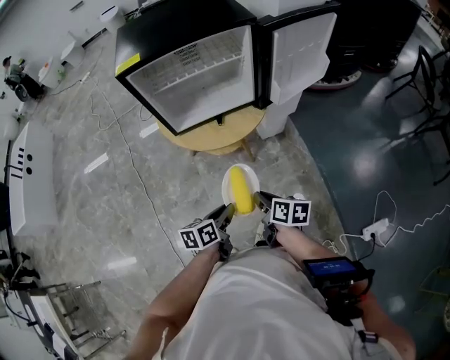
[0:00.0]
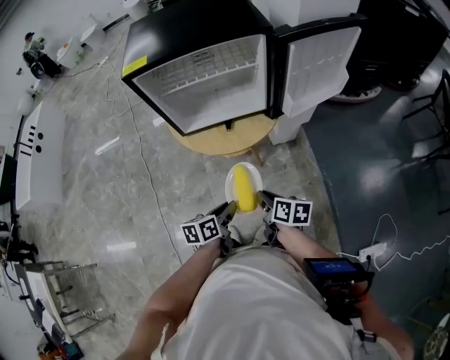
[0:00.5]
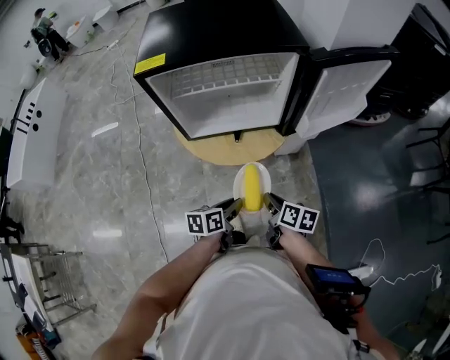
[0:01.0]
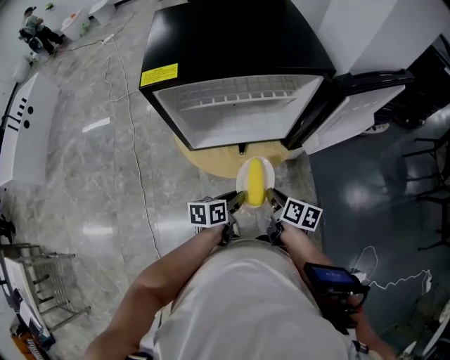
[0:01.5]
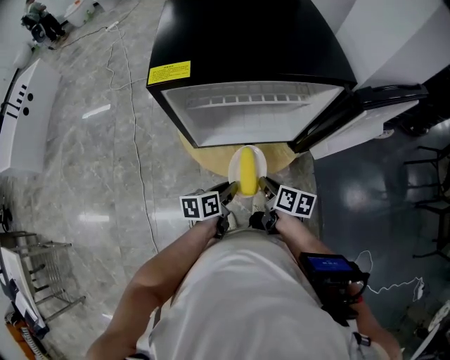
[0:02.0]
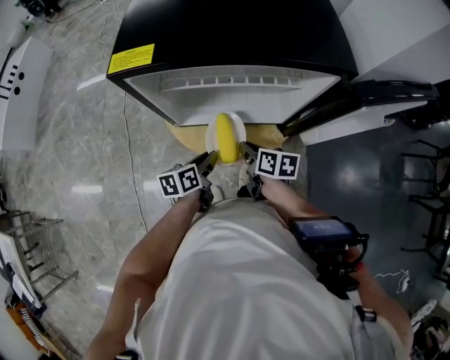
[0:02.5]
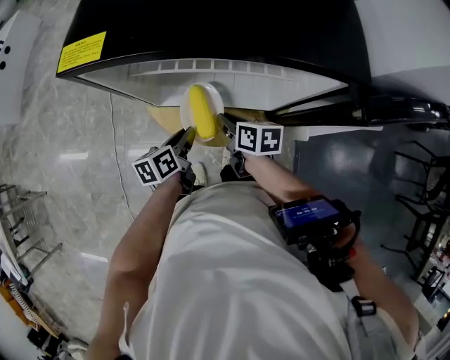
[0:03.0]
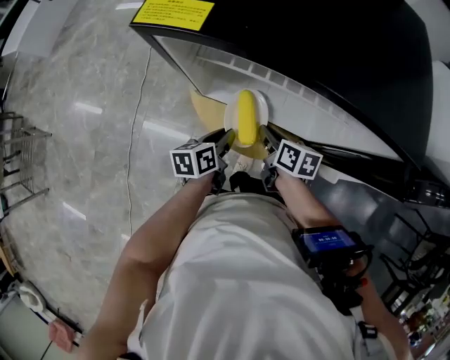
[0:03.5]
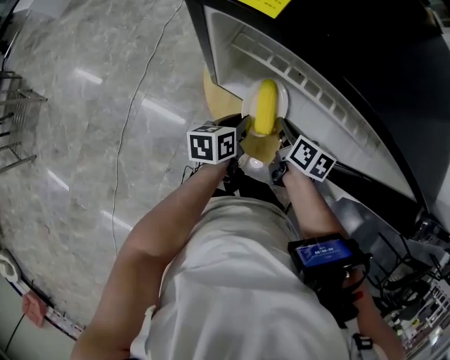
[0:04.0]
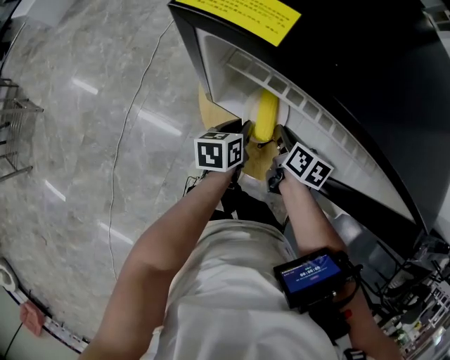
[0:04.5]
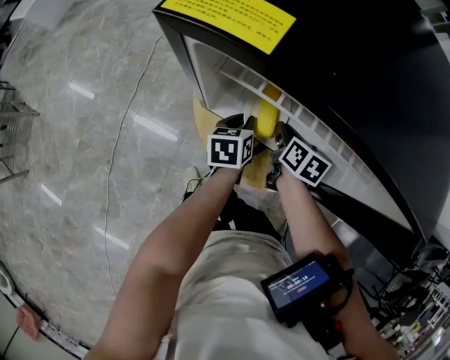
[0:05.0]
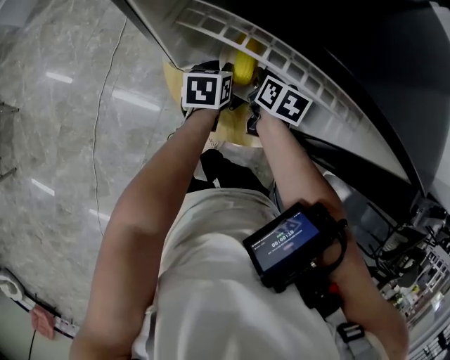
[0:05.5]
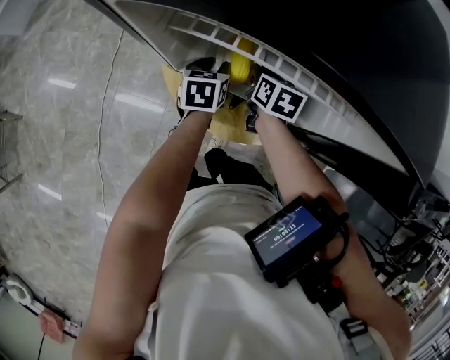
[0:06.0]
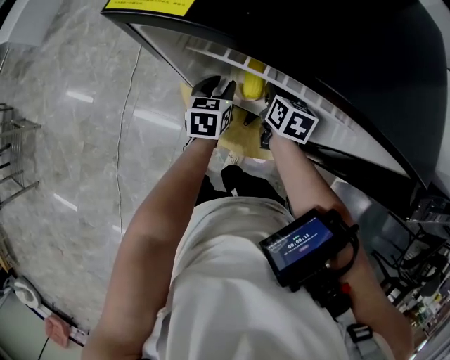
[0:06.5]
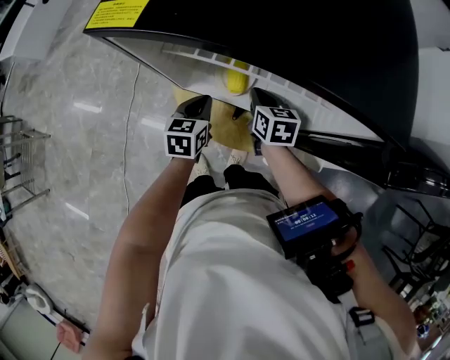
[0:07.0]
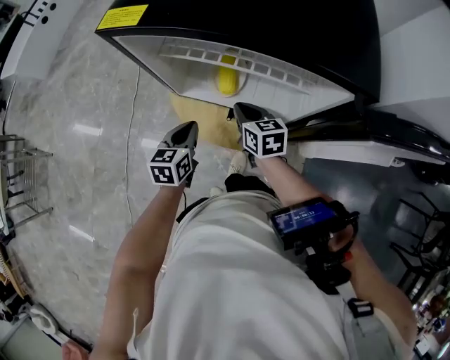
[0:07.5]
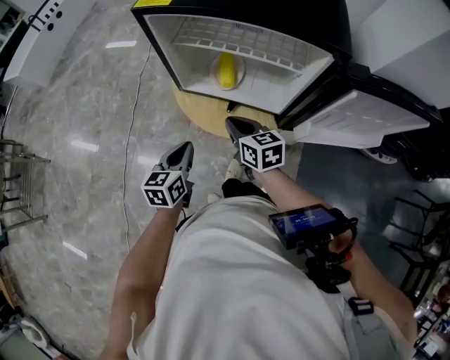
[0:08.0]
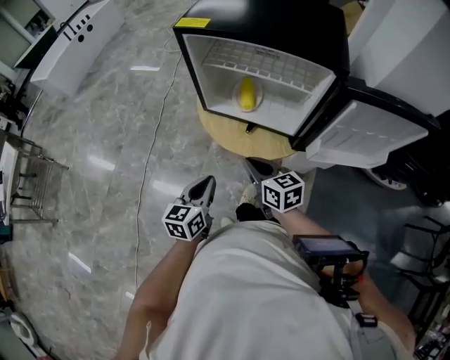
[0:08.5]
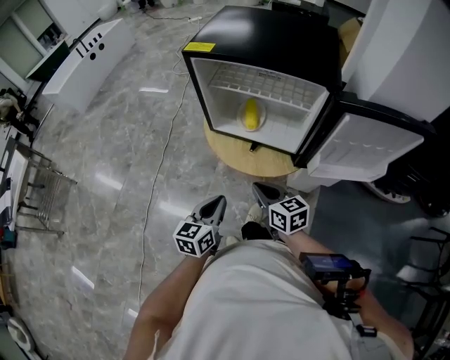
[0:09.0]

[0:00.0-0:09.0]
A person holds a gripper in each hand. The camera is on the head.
0:00.0 to 0:02.0: The two grippers go roughly 25 cm forward.
0:02.0 to 0:04.5: The left gripper moves approximately 15 cm, and changes its angle by approximately 30 degrees, while the right gripper moves approximately 20 cm, and rotates roughly 20 degrees.
0:04.5 to 0:07.0: The left gripper turns by approximately 30 degrees.
0:07.0 to 0:09.0: Both grippers travel together backward, some 30 cm. The right gripper rotates about 20 degrees.

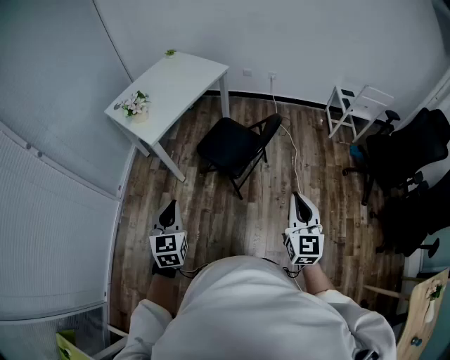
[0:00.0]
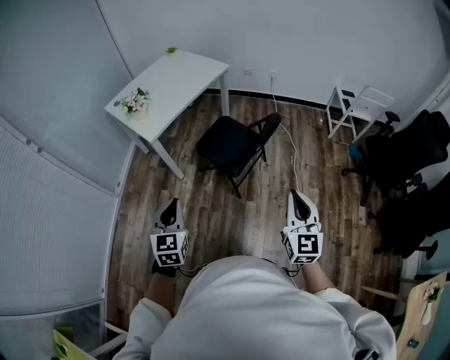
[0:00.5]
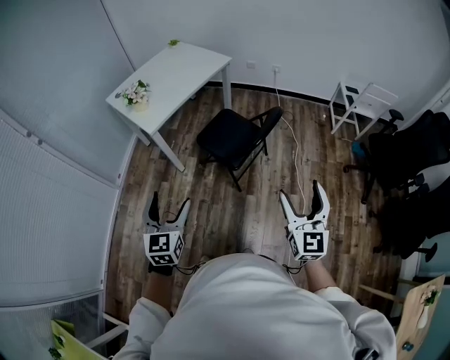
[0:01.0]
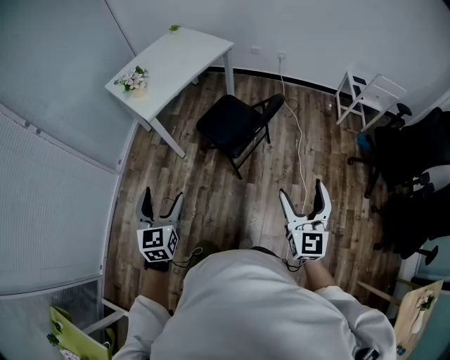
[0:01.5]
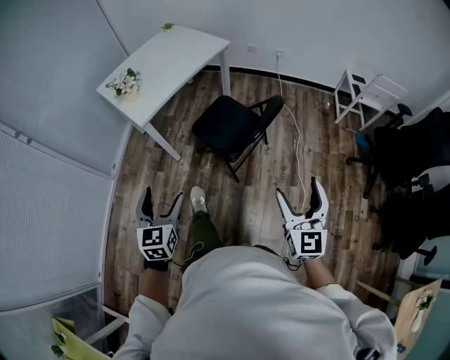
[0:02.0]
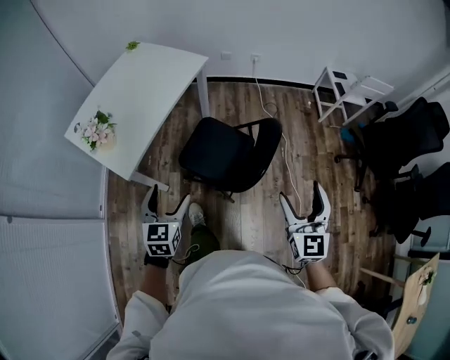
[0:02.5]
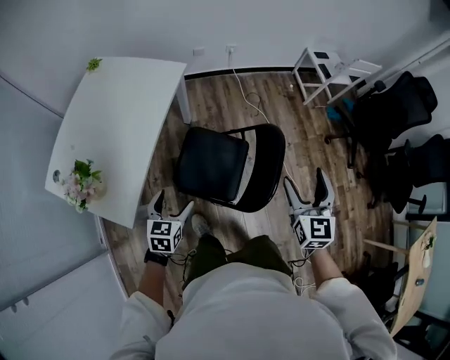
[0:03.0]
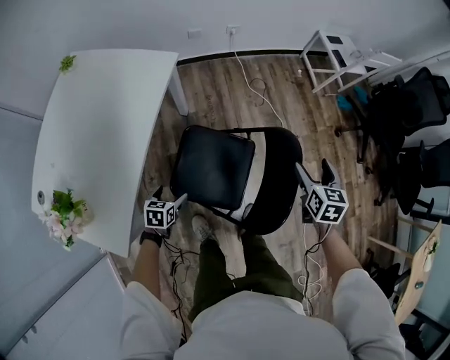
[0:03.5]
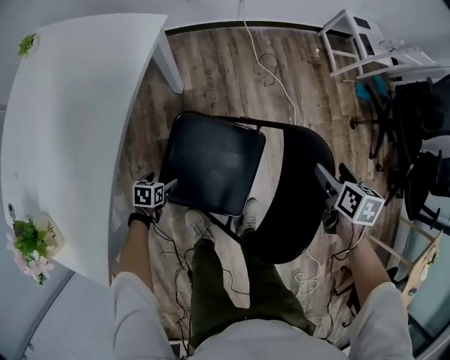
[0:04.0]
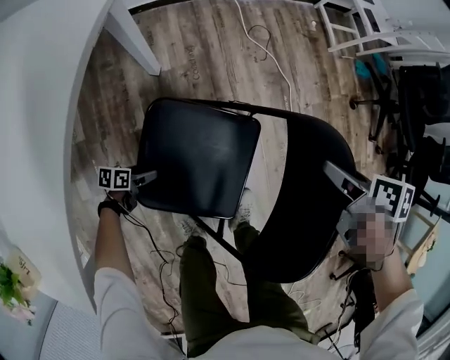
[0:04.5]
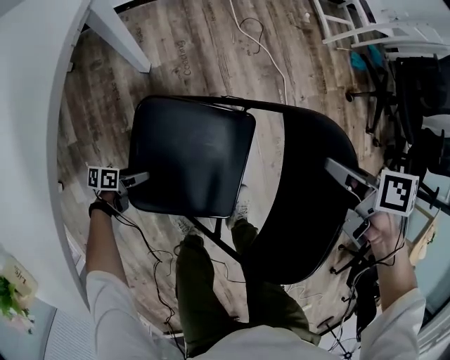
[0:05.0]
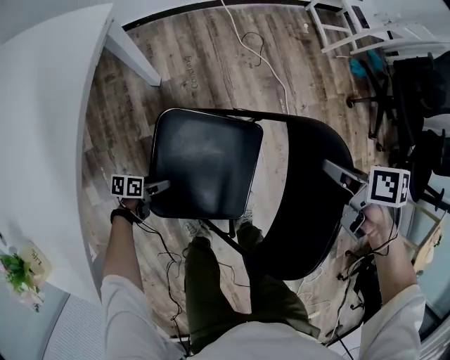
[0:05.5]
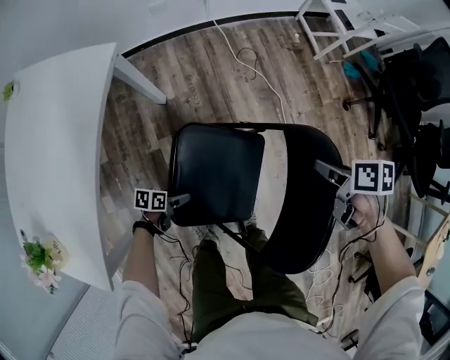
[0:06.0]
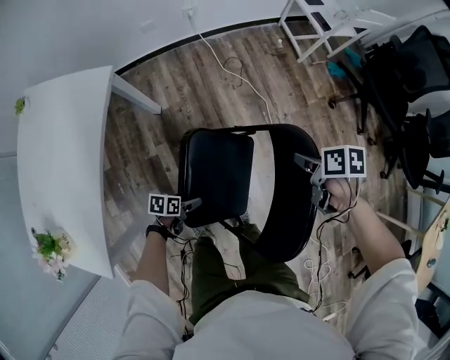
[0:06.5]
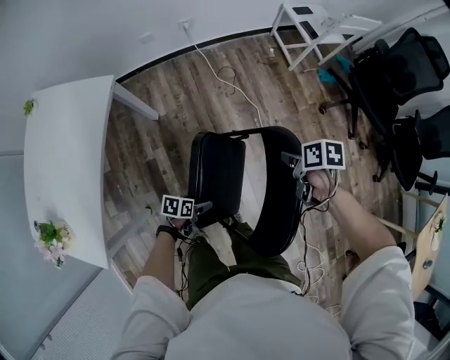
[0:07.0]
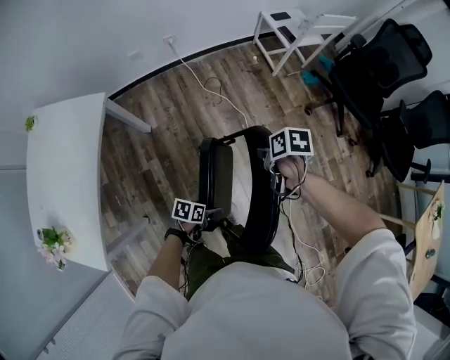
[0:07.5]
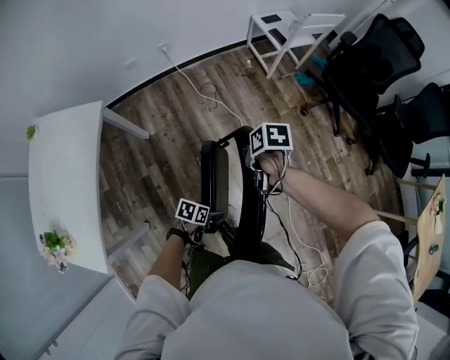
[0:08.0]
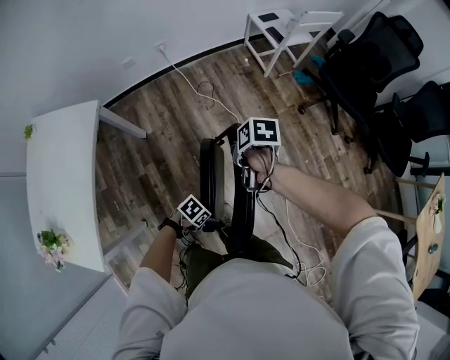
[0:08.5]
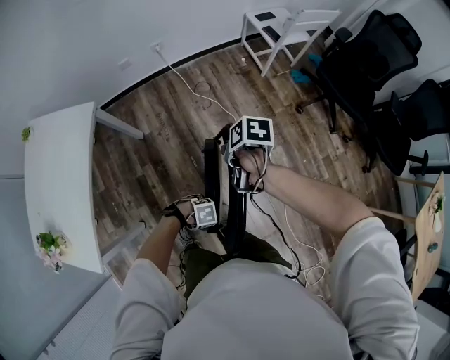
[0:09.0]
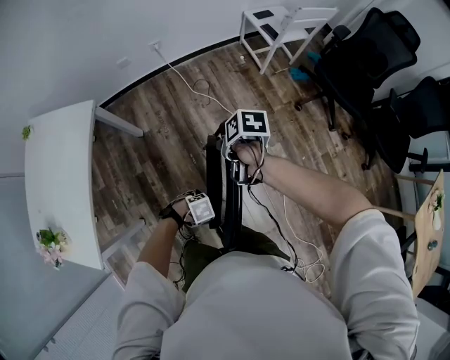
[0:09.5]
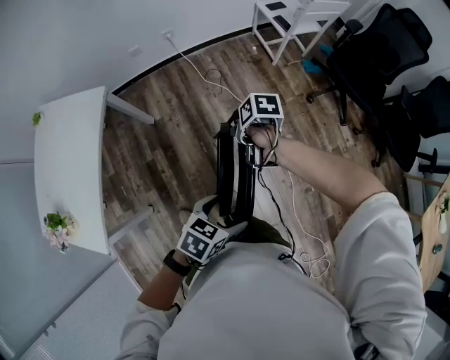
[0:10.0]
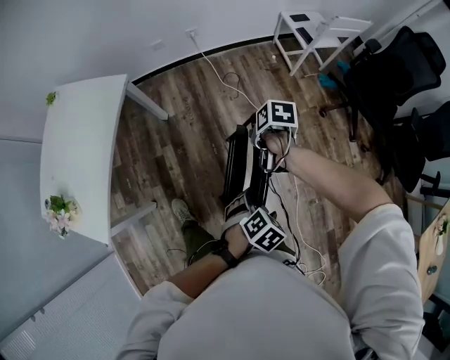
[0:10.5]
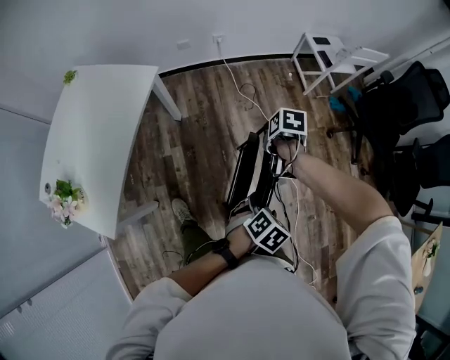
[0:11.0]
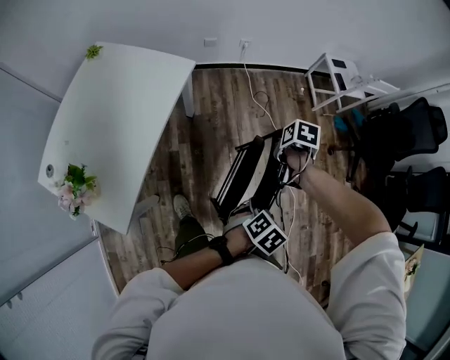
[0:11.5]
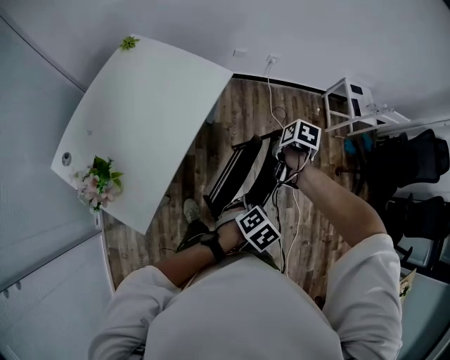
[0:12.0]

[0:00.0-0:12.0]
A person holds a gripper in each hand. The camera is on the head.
0:00.0 to 0:02.0: The right gripper goes about 5 cm forward, and opens, while the left gripper shifts by roughly 5 cm, and opens its fingers.
0:02.0 to 0:04.0: Both grippers are carried about 60 cm. The left gripper shifts approximately 60 cm downward, and angles its fingers downward, by about 40 degrees. The right gripper angles its fingers downward, by approximately 50 degrees.
0:04.0 to 0:06.0: The right gripper changes place by about 5 cm, swivels approximately 30 degrees, and closes its fingers; the left gripper reaches some 10 cm downward, then returns, and changes its angle by some 20 degrees.
0:06.0 to 0:08.0: The right gripper moves upward, some 10 cm; the left gripper ends up some 40 cm from where it was, and changes its angle by some 20 degrees.
0:08.0 to 0:10.0: The left gripper is displaced upward by approximately 25 cm, and changes its angle by approximately 30 degrees.
0:10.0 to 0:12.0: The left gripper changes place by roughly 30 cm, changes its angle by approximately 20 degrees, and closes, while the right gripper moves approximately 35 cm.

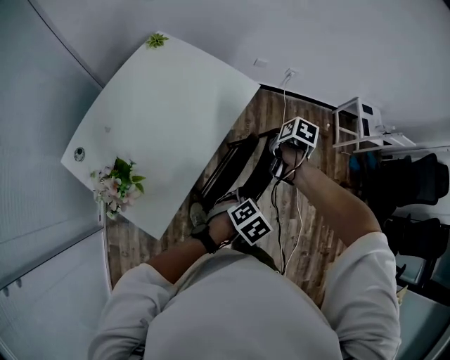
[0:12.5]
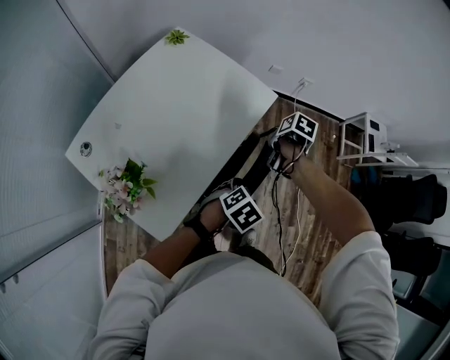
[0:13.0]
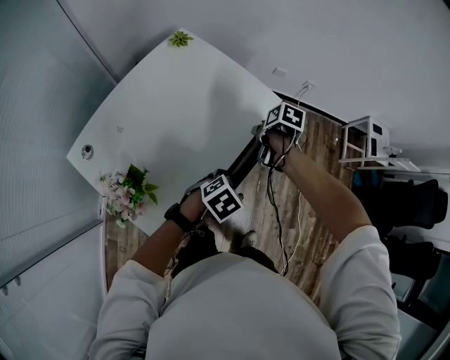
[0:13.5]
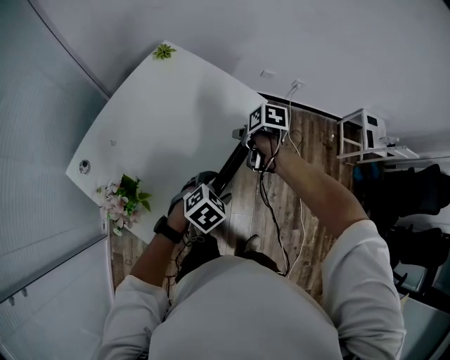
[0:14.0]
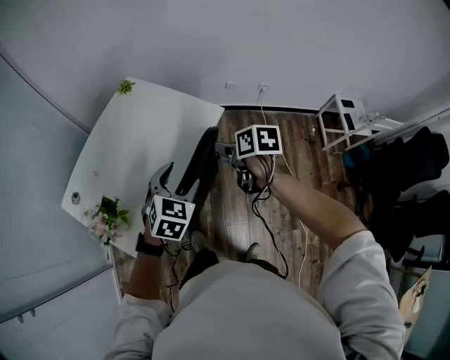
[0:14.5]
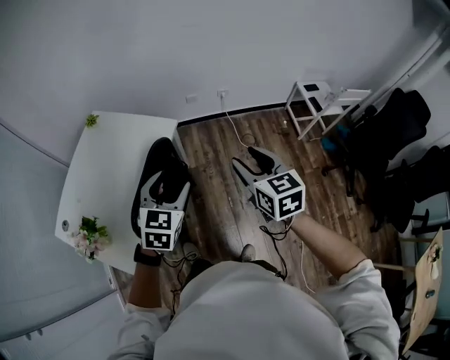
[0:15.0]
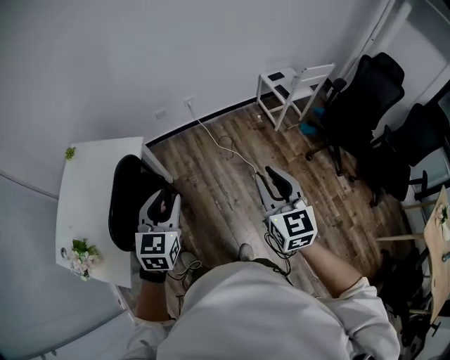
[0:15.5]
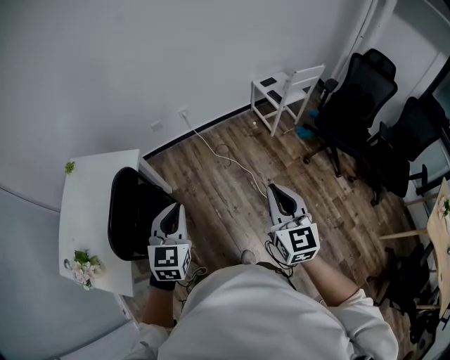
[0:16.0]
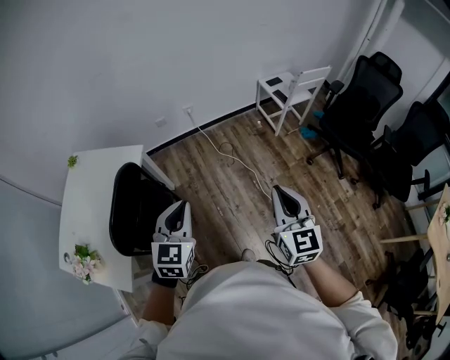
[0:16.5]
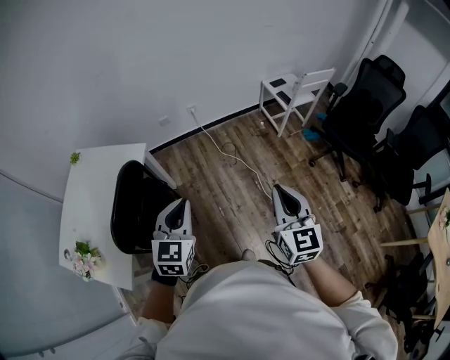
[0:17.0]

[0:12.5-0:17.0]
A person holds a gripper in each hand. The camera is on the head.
0:12.5 to 0:14.5: The right gripper heads upward, covering about 10 cm, turns by roughly 30 degrees, and opens. The left gripper changes place by some 20 cm, and changes its angle by about 40 degrees.
0:14.5 to 0:17.0: The left gripper shifts by some 35 cm, turns by about 20 degrees, and closes, while the right gripper ends up some 50 cm from where it was, points its fingers approximately 40 degrees further upward, and closes its fingers.

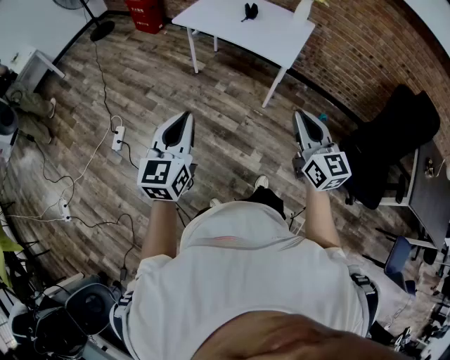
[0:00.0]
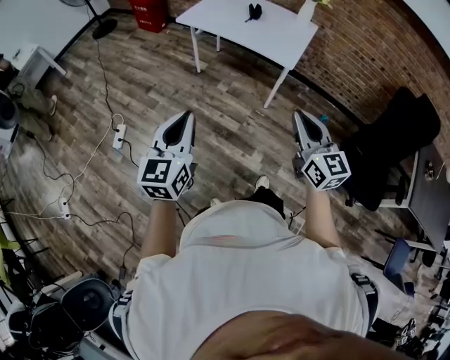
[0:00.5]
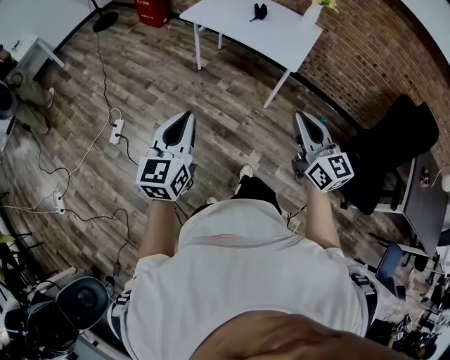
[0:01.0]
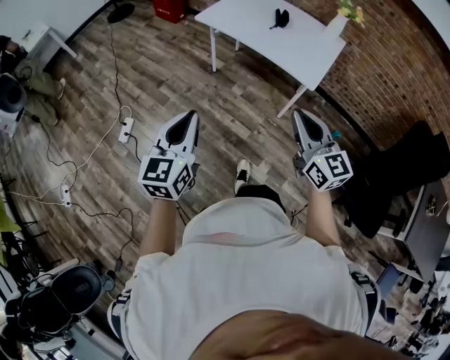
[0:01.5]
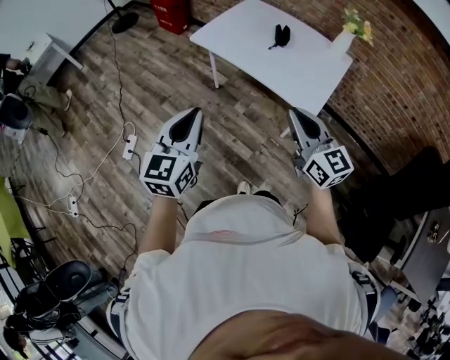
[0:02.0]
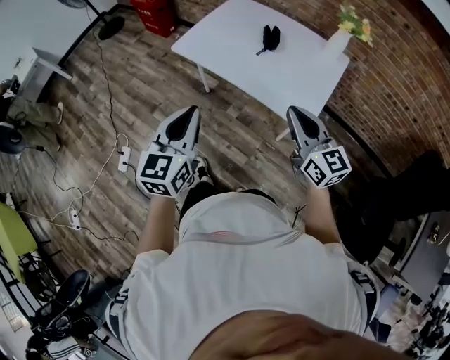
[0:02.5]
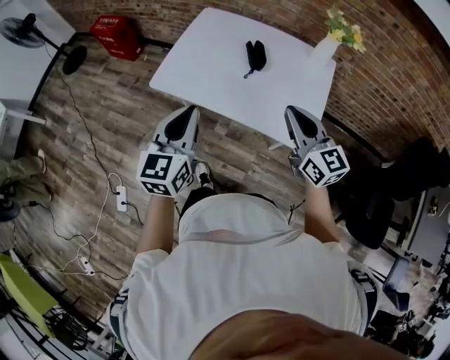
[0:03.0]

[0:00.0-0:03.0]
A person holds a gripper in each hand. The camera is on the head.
0:00.0 to 0:01.5: The right gripper moves forward and to the left, approximately 15 cm. Meanwhile the left gripper is displaced forward by some 10 cm.
0:01.5 to 0:03.0: Both grippers are carried forward, roughly 40 cm.
